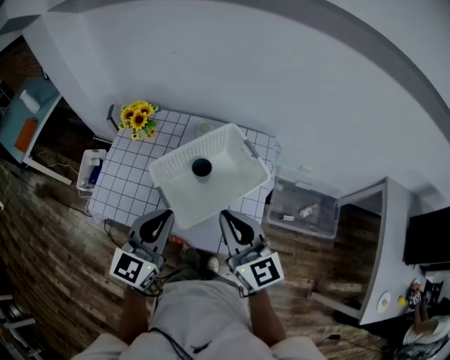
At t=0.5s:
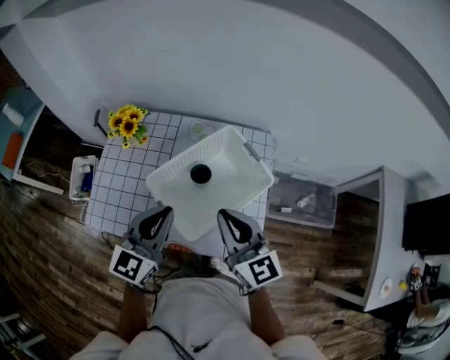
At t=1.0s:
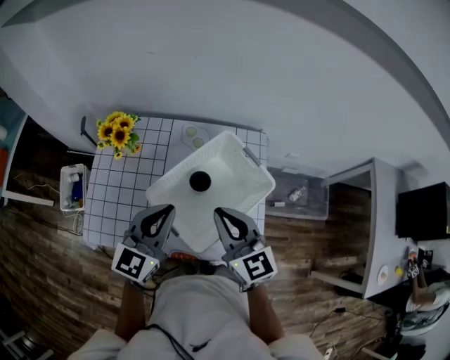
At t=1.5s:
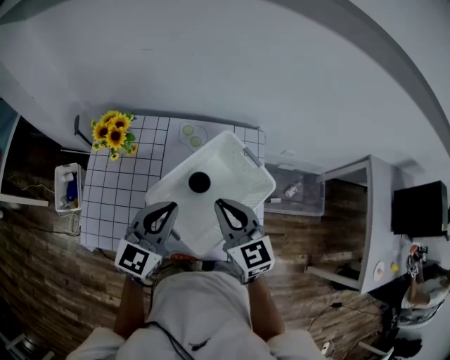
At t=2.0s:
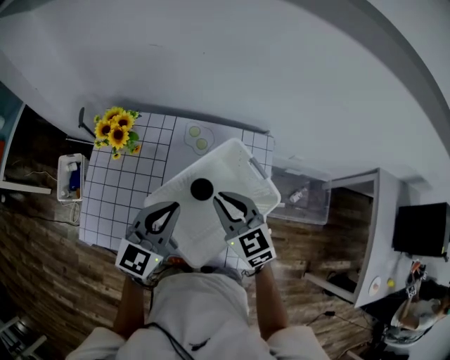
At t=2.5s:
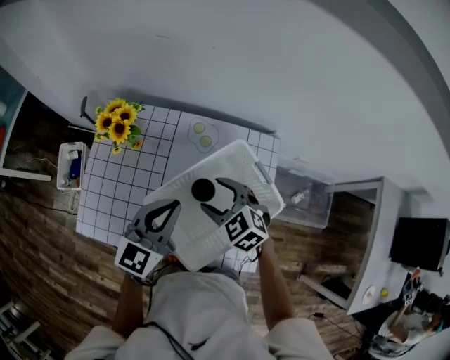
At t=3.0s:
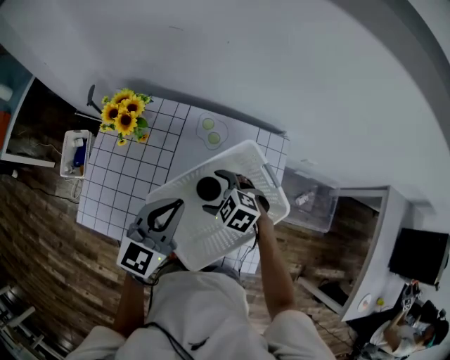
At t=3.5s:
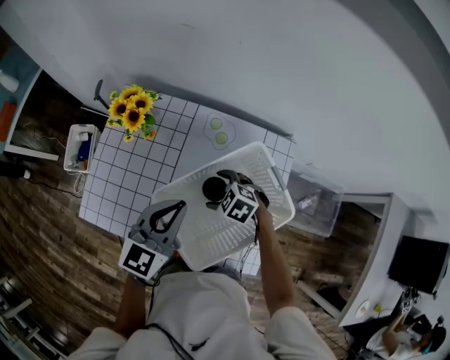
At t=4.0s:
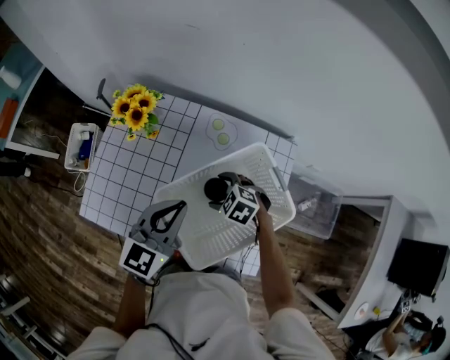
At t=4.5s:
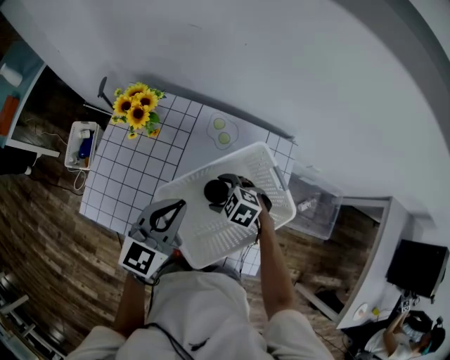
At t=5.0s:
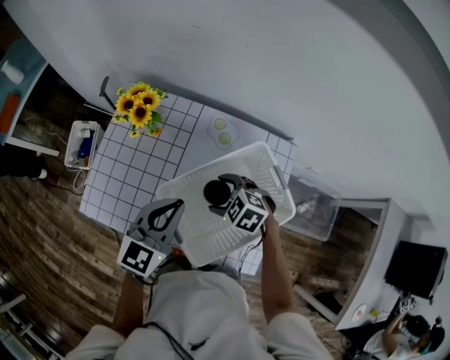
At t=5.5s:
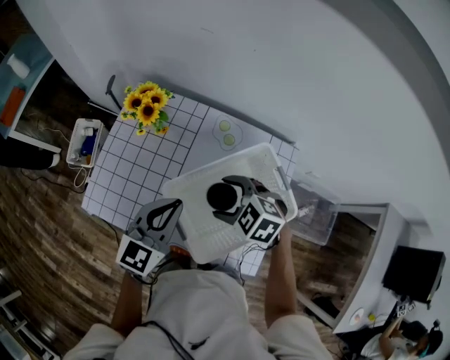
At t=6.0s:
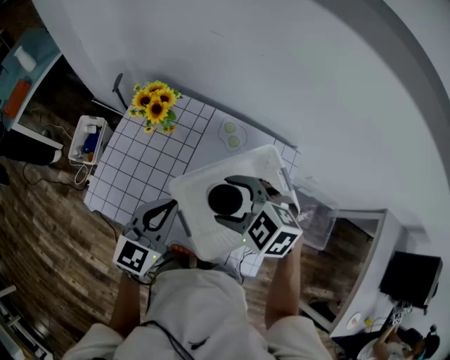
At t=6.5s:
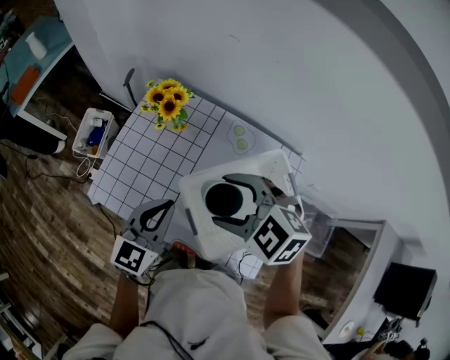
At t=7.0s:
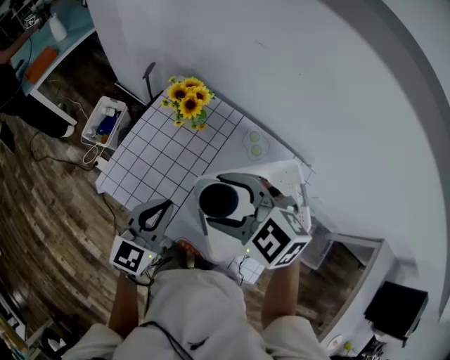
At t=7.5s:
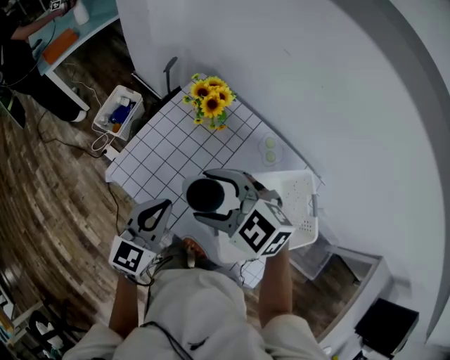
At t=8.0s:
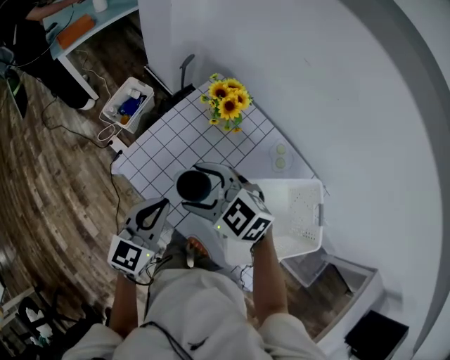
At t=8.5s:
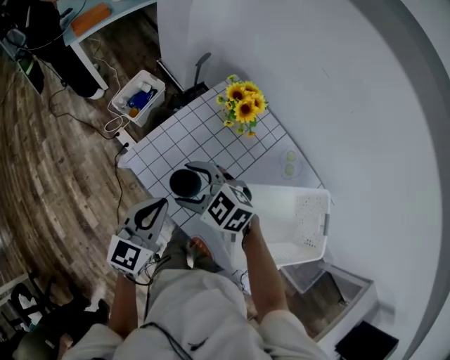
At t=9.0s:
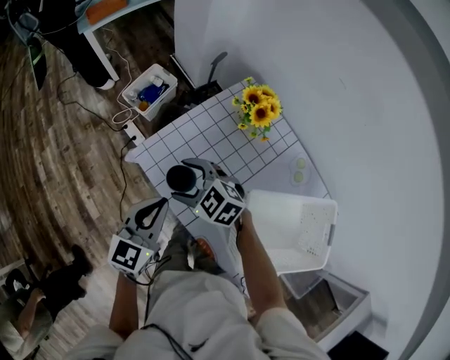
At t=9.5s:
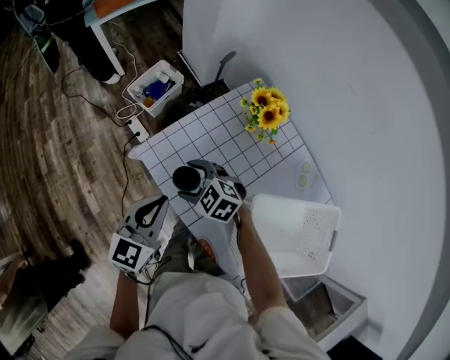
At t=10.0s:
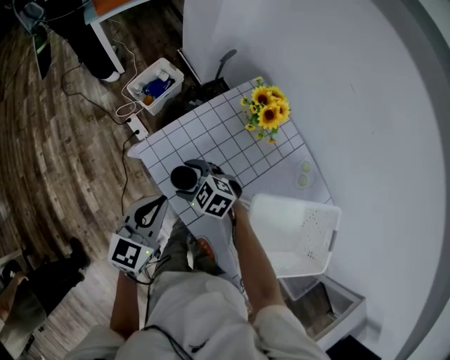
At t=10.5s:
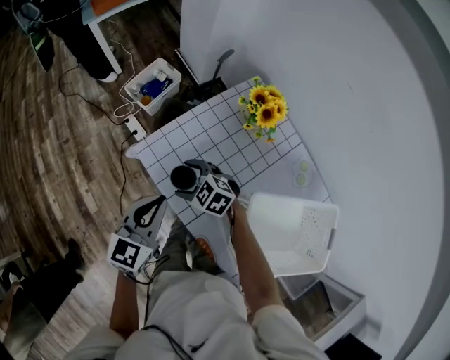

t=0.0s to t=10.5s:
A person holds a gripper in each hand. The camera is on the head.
t=0.0s to t=2.0s: The left gripper heads forward, covering some 15 cm; the right gripper goes roughly 20 cm forward and downward, and points its fingers about 30 degrees further downward.
t=2.0s to t=4.0s: The right gripper heads downward, covering approximately 20 cm, points its fingers some 30 degrees further downward, and opens its fingers.
t=4.0s to t=6.5s: The left gripper moves to the left, some 10 cm; the right gripper shifts approximately 25 cm upward, and swivels roughly 30 degrees.
t=6.5s to t=8.5s: The left gripper changes place by approximately 15 cm, and rotates some 20 degrees, while the right gripper moves approximately 25 cm, and rotates some 20 degrees.
t=8.5s to t=10.5s: The right gripper travels downward by roughly 15 cm.

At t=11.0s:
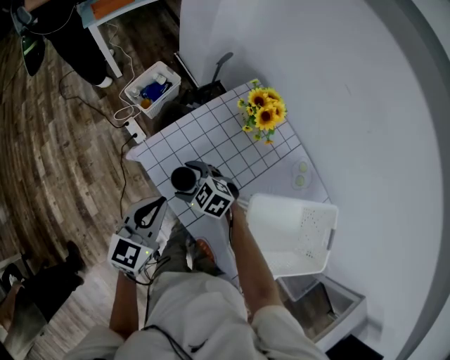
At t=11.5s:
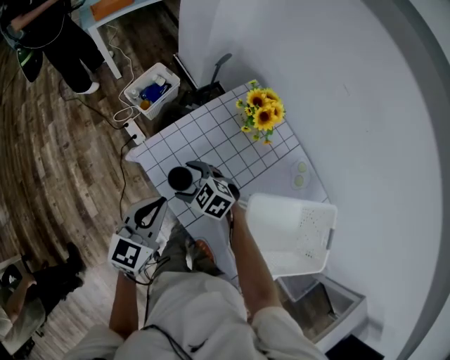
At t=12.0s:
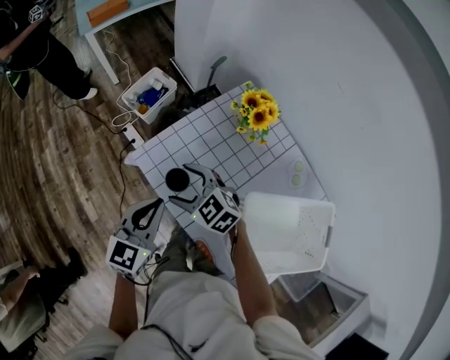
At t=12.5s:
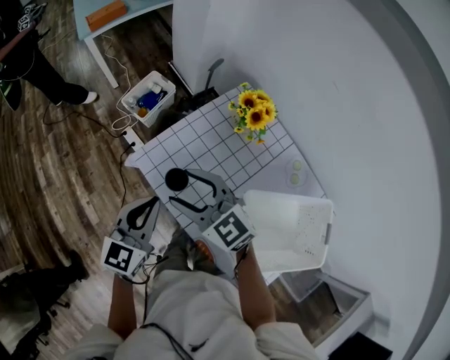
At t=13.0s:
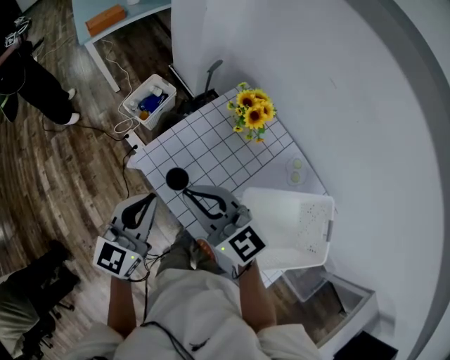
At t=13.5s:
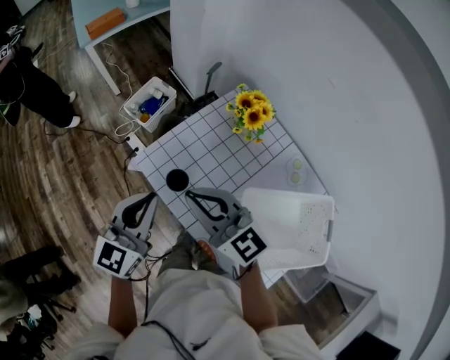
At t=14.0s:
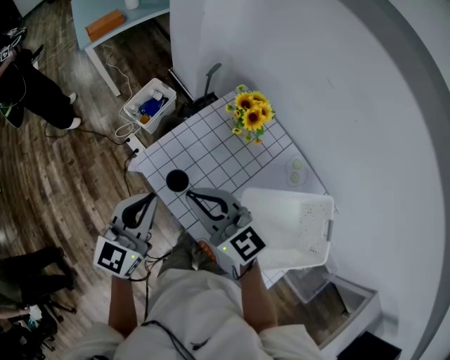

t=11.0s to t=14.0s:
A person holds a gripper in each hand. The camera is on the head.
t=11.0s to t=12.5s: The right gripper goes some 20 cm upward, and rotates some 30 degrees.
t=12.5s to t=14.0s: The two grippers go approximately 5 cm upward. The right gripper closes.

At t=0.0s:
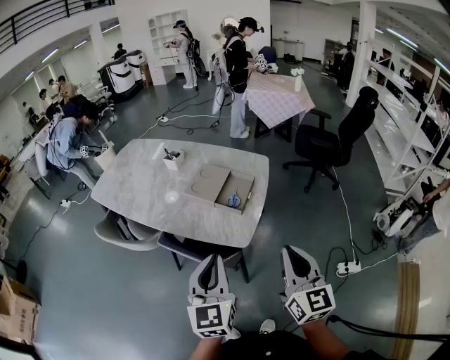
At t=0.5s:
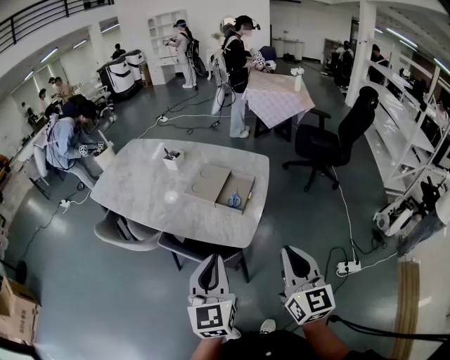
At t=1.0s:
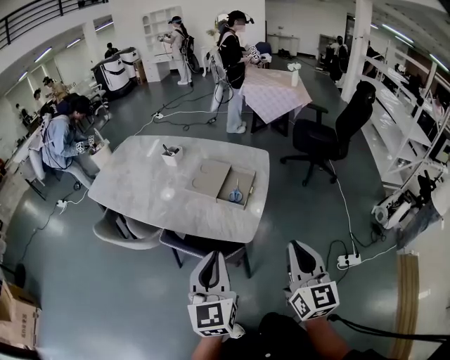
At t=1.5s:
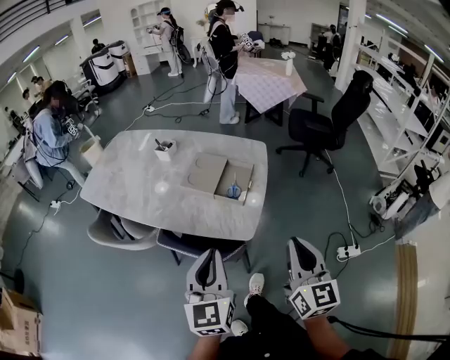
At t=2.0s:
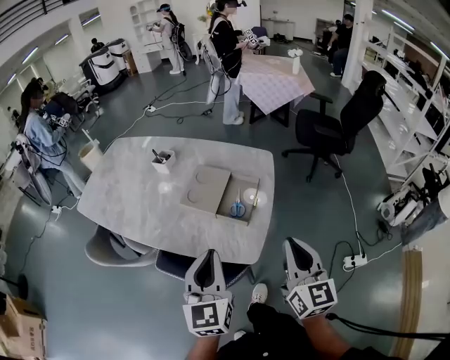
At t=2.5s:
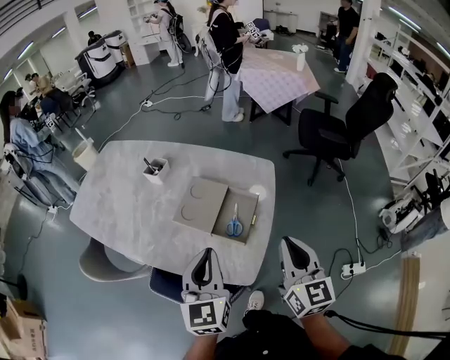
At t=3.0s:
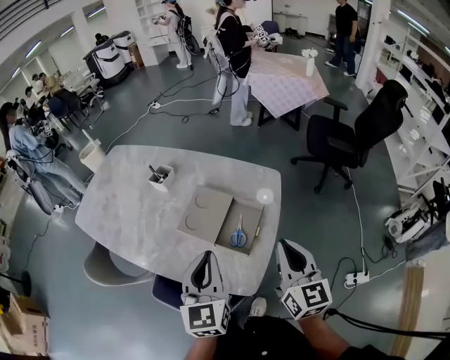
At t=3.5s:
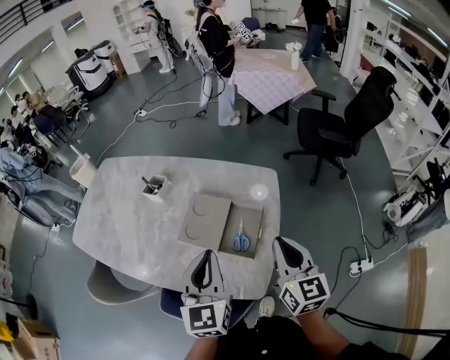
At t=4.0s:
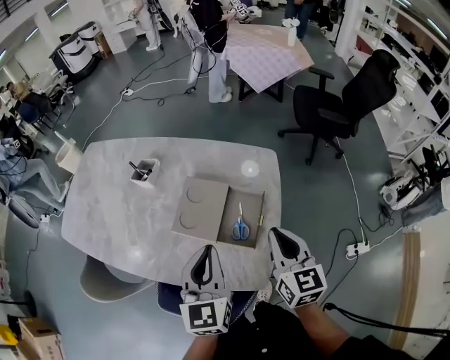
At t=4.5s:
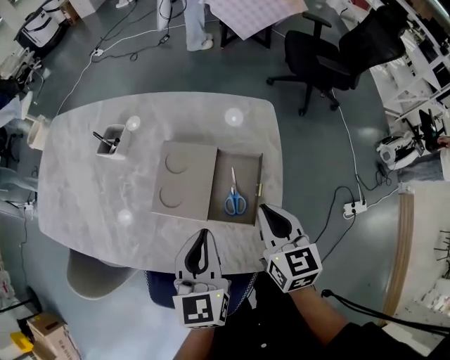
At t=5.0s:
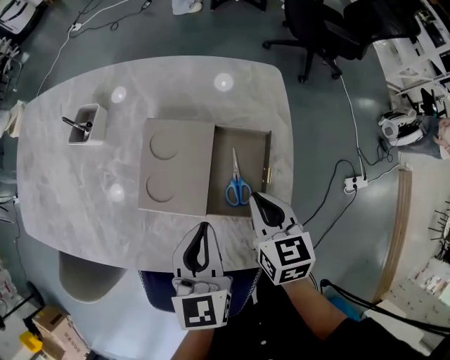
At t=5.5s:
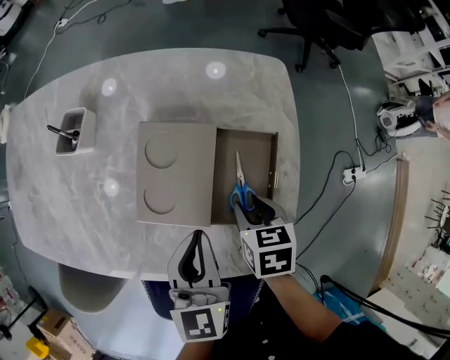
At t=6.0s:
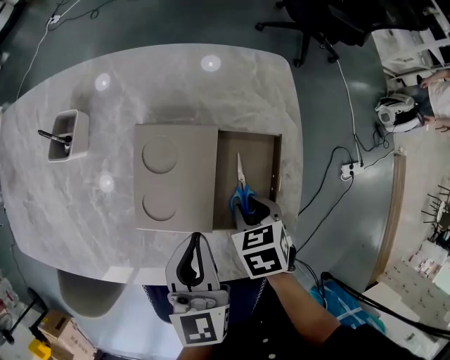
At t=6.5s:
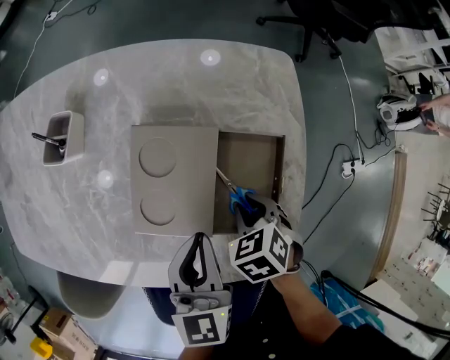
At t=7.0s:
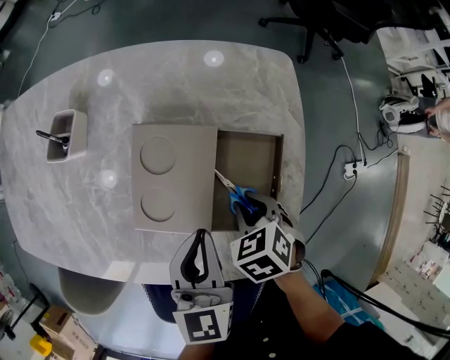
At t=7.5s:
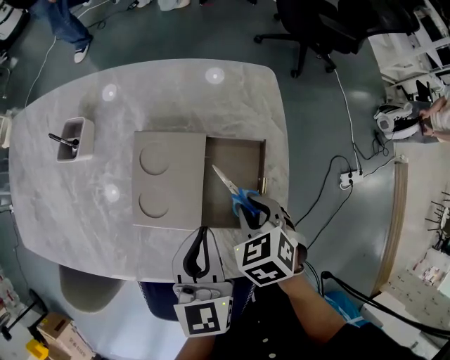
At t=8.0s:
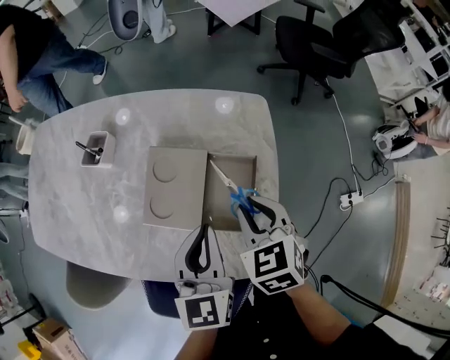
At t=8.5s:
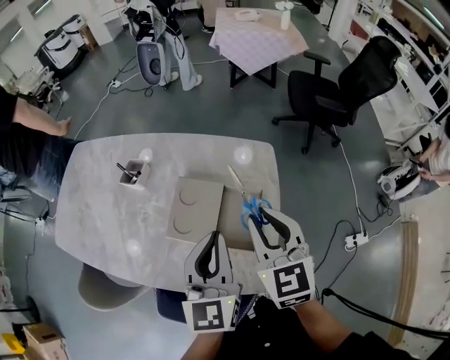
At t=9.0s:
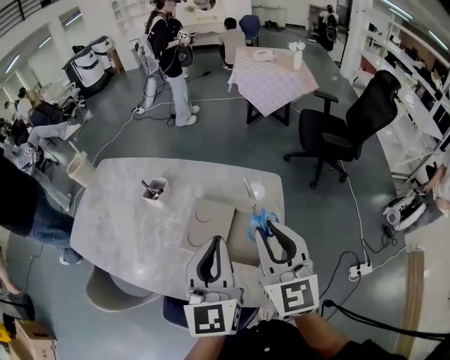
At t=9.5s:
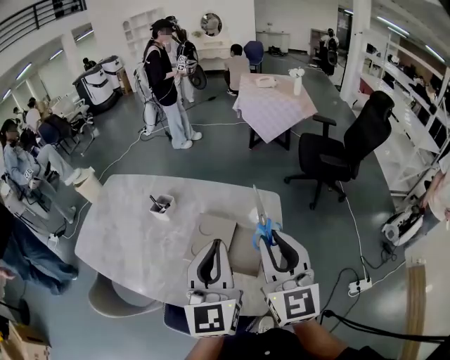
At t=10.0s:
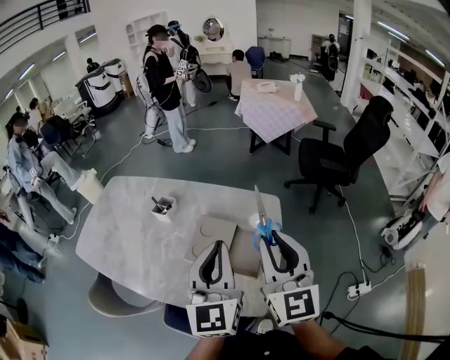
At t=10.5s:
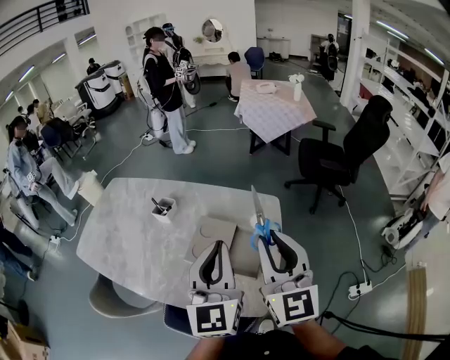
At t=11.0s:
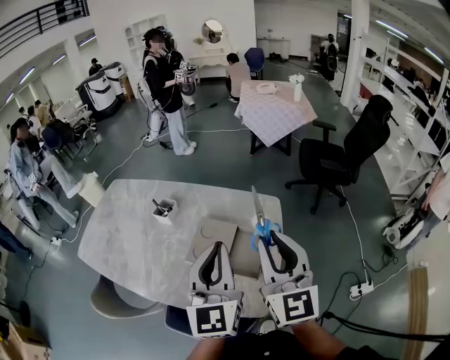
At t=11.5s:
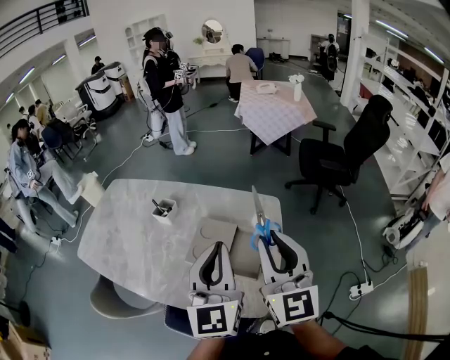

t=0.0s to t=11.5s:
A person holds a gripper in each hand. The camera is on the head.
t=0.0s to t=2.0s: The grippers both shift forward by roughly 15 cm.
t=2.0s to t=4.0s: The two grippers go roughly 20 cm forward.
t=4.0s to t=6.0s: The right gripper moves downward, roughly 30 cm, tilts its fingers approximately 50 degrees downward, and opens up. The left gripper goes roughly 20 cm downward and forward.
t=6.0s to t=7.5s: The right gripper travels upward by about 5 cm.
t=7.5s to t=9.5s: Both grippers travel together upward, approximately 35 cm. The right gripper angles its fingers upward, by some 70 degrees, while the left gripper tips its fingers upward by about 30 degrees.
t=9.5s to t=11.5s: There are only small adjustments of the grippers.

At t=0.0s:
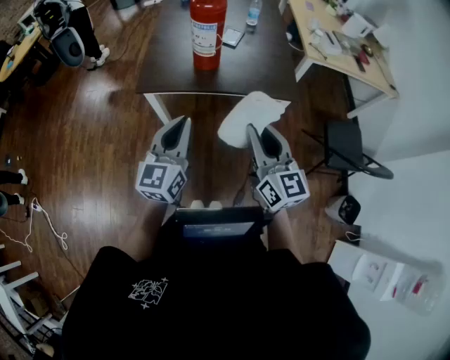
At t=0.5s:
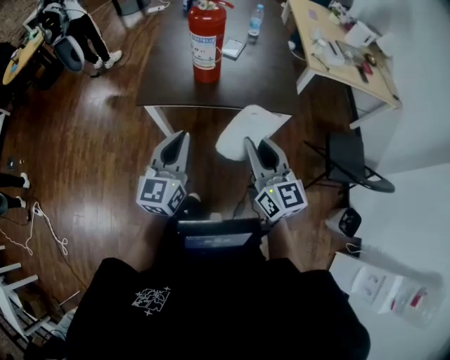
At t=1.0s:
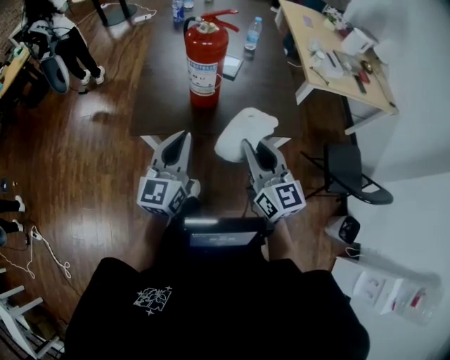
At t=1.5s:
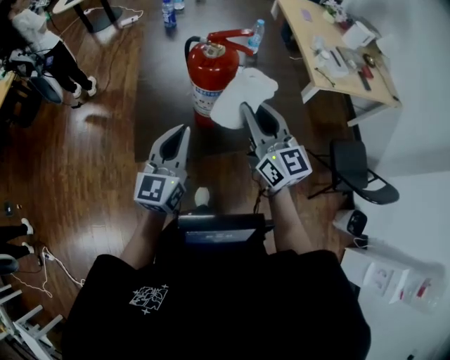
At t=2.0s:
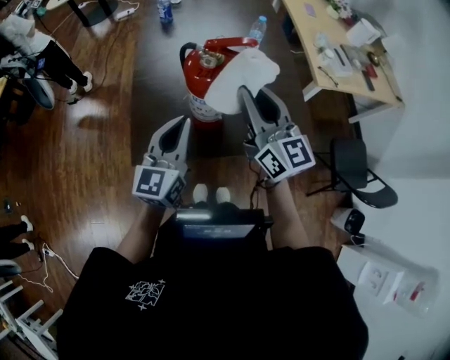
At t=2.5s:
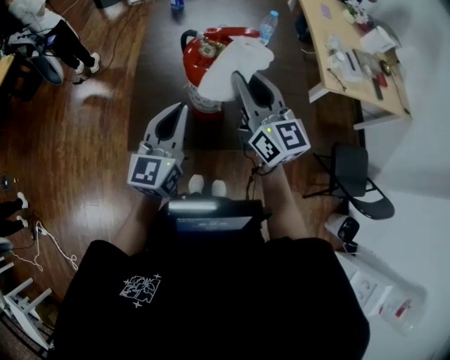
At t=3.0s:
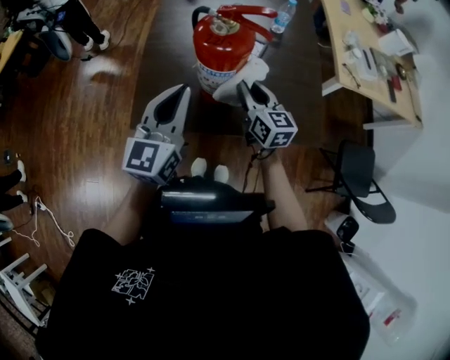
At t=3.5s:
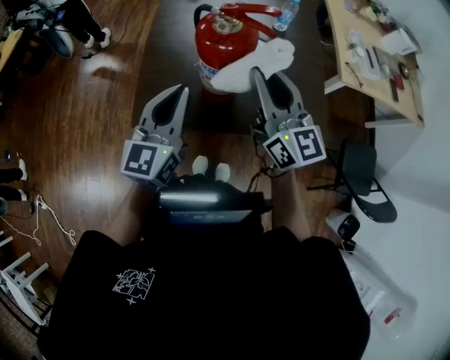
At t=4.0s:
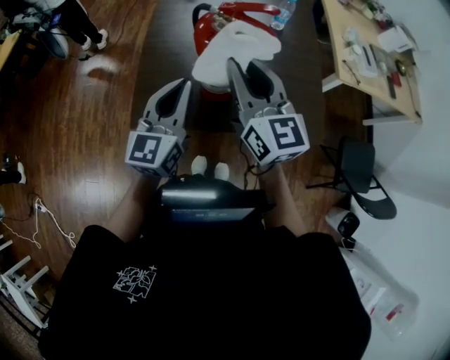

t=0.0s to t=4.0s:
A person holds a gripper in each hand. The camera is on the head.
t=0.0s to t=2.0s: The grippers both shift forward by approximately 35 cm.
t=2.0s to t=4.0s: The right gripper goes downward and returns, some 20 cm each way.
